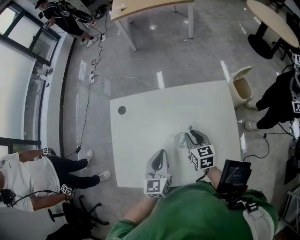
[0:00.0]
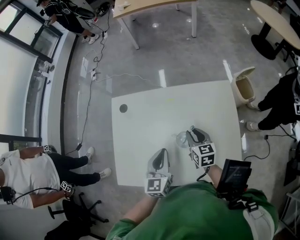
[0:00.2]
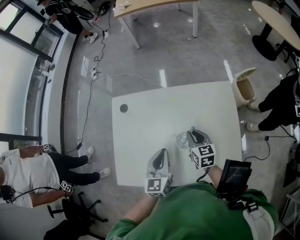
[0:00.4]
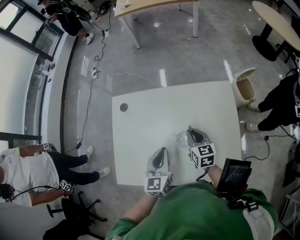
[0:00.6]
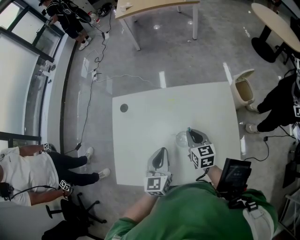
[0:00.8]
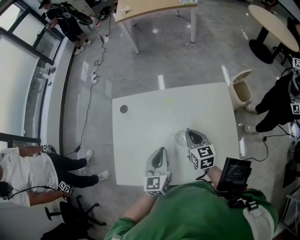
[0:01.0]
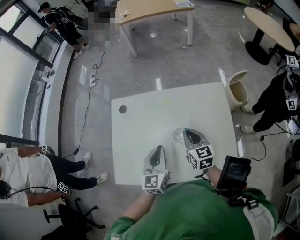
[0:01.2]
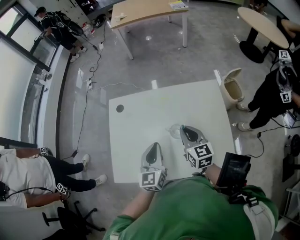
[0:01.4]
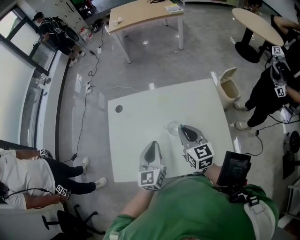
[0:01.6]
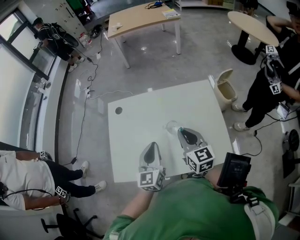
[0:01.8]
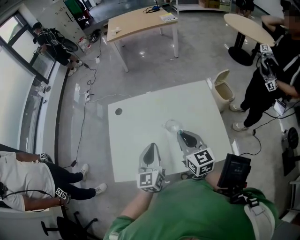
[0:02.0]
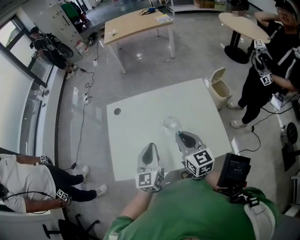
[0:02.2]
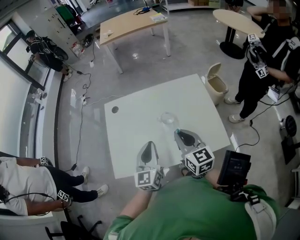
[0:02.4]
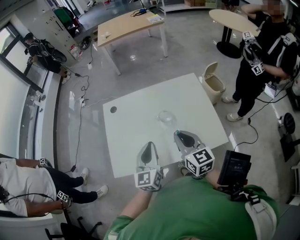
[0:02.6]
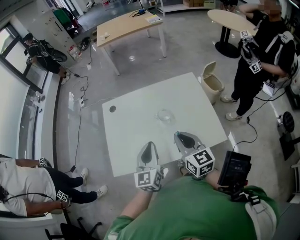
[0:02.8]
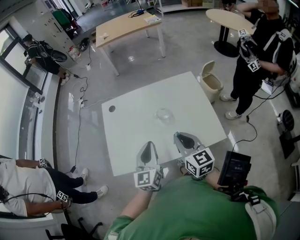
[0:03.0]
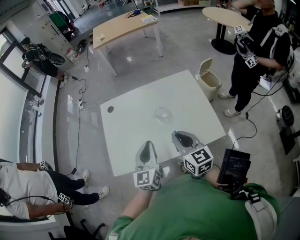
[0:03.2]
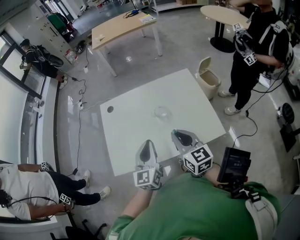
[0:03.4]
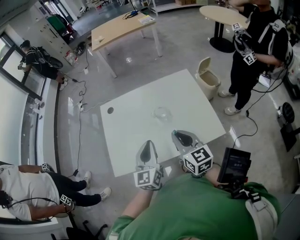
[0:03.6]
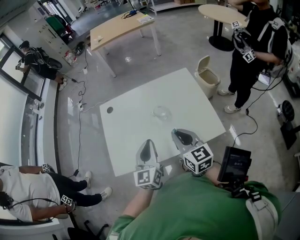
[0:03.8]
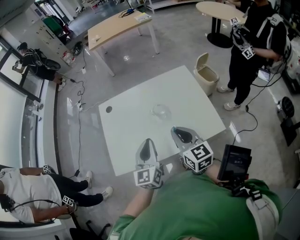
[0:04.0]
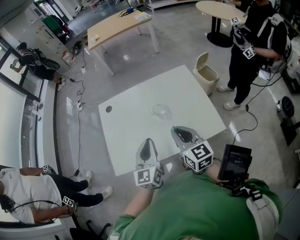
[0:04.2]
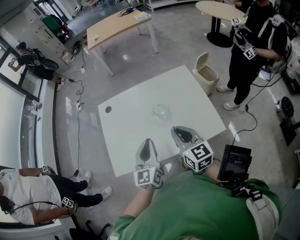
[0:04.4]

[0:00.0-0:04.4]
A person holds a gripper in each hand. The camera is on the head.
0:00.0 to 0:01.4: The right gripper moves upward, approximately 10 cm, and closes.
0:01.4 to 0:03.0: The grippers both shift backward and upward by roughly 20 cm.
0:03.0 to 0:04.4: Both grippers stay put.

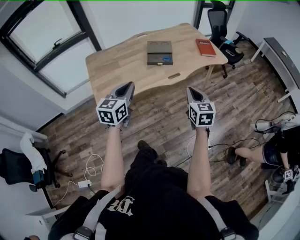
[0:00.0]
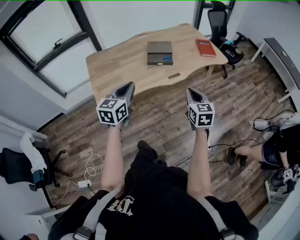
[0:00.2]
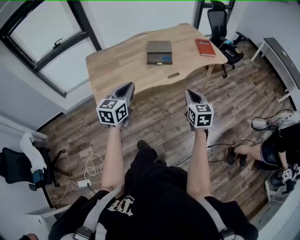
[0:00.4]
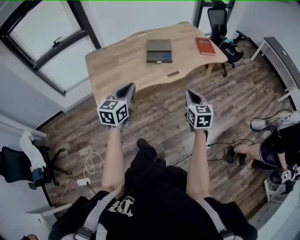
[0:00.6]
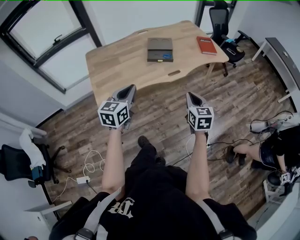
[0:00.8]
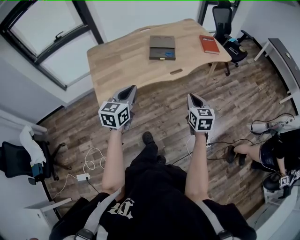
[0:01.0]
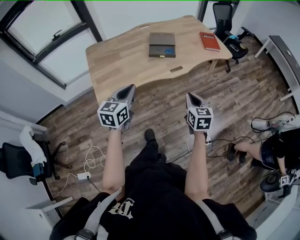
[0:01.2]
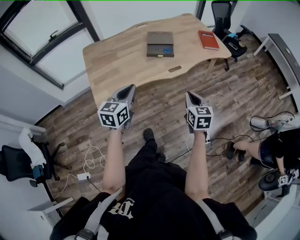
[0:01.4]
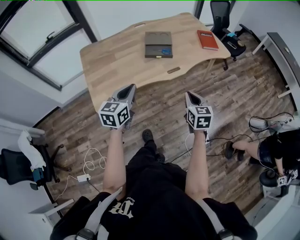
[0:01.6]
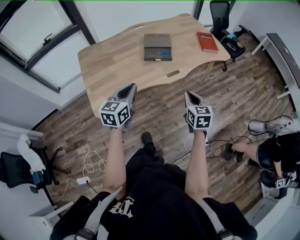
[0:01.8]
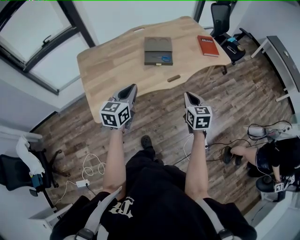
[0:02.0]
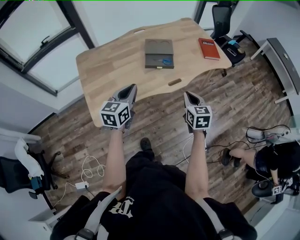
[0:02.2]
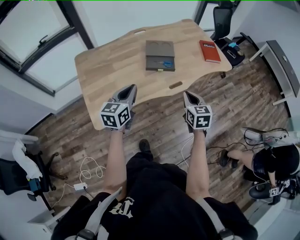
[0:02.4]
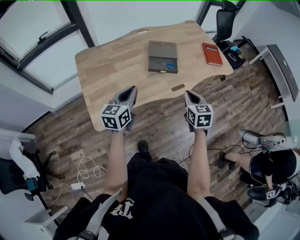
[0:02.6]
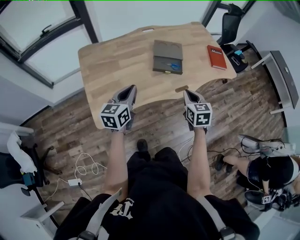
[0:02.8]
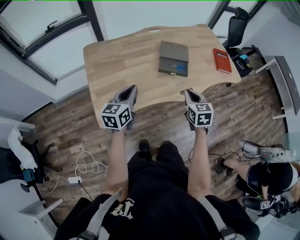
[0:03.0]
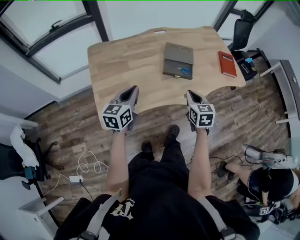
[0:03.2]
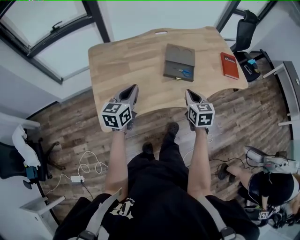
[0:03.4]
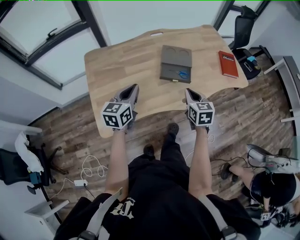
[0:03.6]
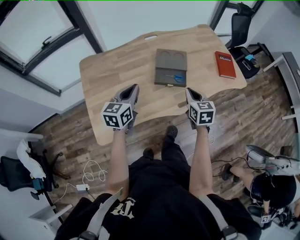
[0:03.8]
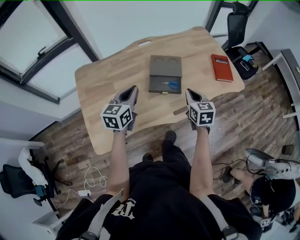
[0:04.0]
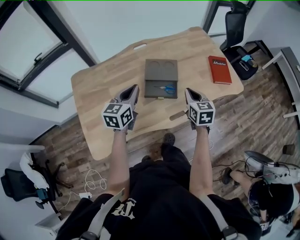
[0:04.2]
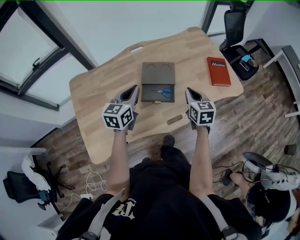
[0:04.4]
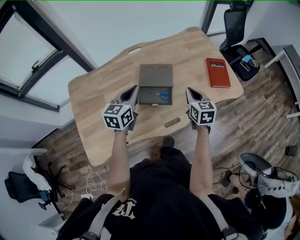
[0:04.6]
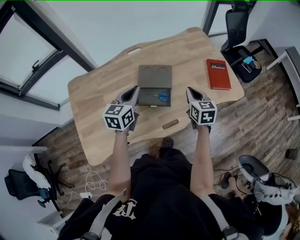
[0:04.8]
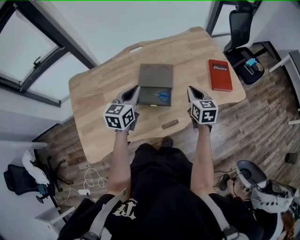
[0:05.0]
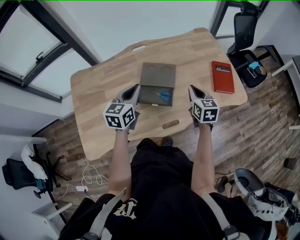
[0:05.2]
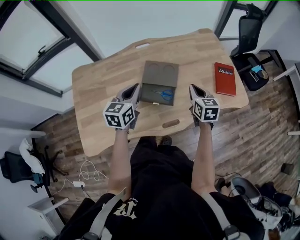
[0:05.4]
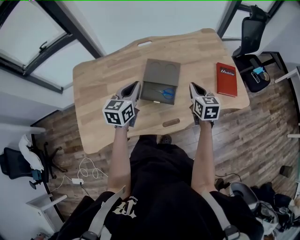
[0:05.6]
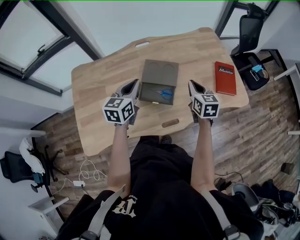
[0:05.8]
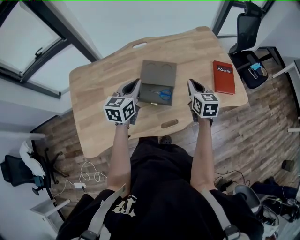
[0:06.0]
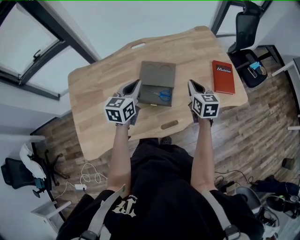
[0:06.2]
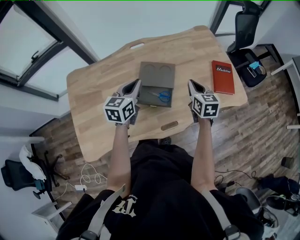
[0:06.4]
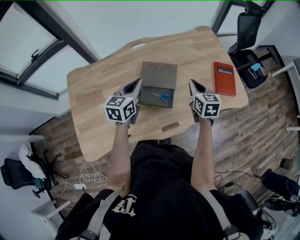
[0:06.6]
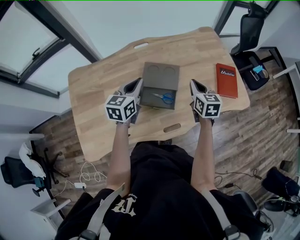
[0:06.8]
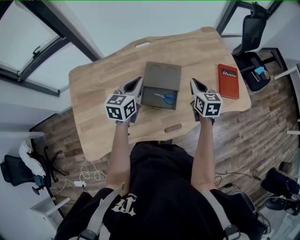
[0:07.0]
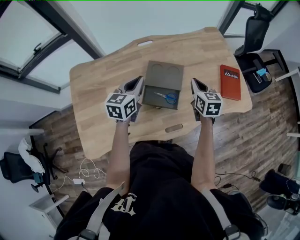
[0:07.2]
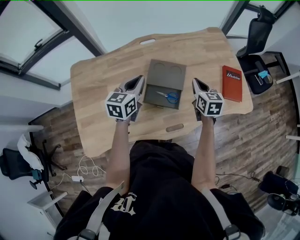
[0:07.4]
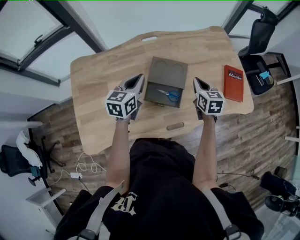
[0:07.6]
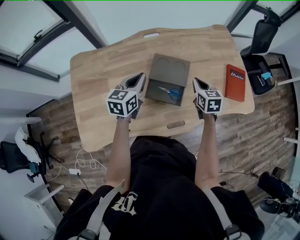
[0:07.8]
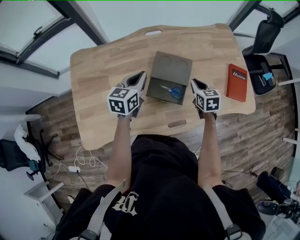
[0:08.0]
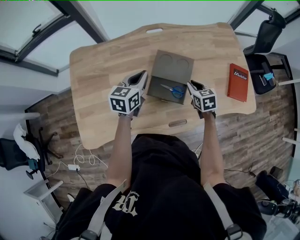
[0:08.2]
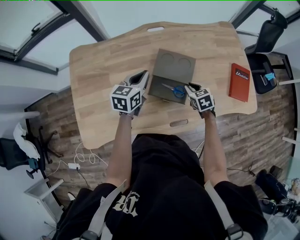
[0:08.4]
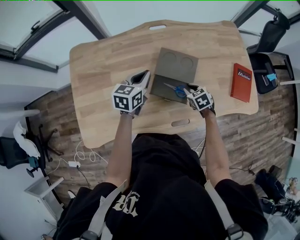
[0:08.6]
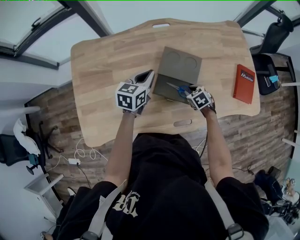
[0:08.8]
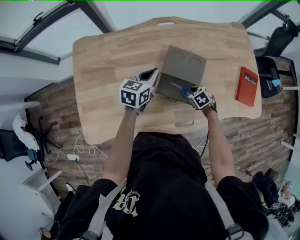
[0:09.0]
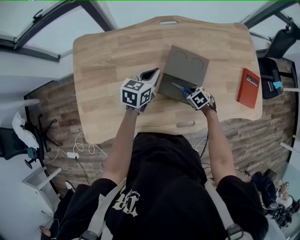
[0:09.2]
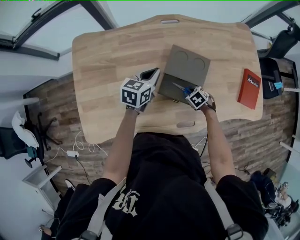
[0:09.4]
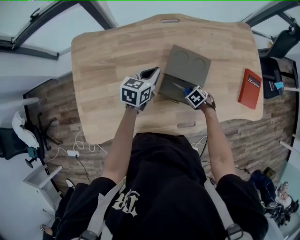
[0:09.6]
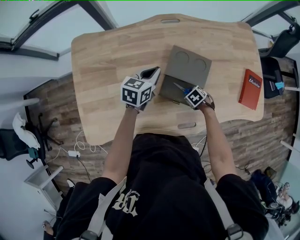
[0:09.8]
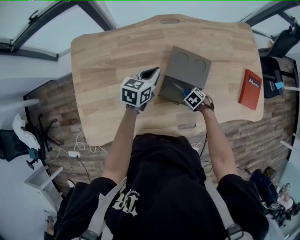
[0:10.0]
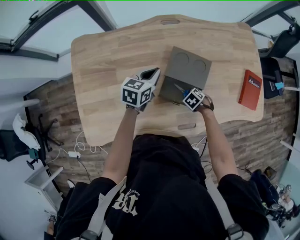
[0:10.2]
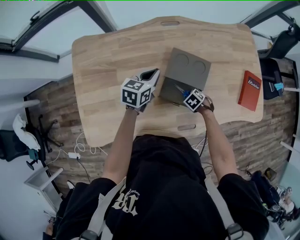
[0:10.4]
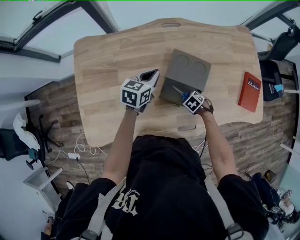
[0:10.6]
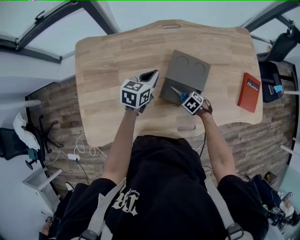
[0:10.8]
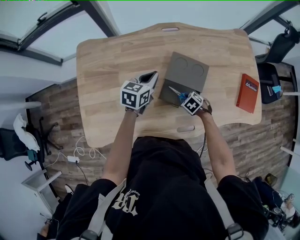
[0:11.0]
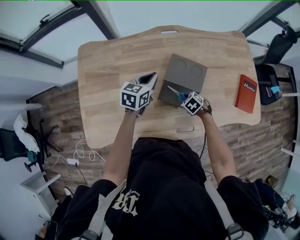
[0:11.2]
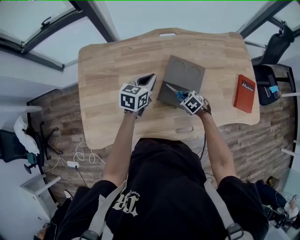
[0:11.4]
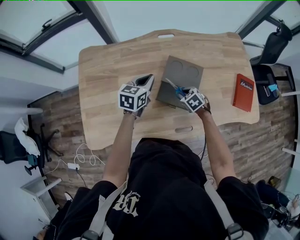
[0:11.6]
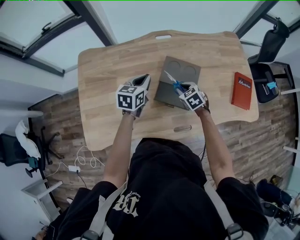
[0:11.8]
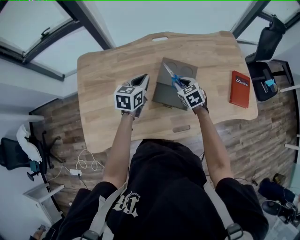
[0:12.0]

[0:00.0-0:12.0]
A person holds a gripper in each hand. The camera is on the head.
0:00.0 to 0:01.6: Both grippers travel together downward, approximately 5 cm.
0:01.6 to 0:03.0: Both grippers travel together forward and to the left, approximately 20 cm.
0:03.0 to 0:04.4: Both grippers move forward and to the right, roughly 30 cm.
0:04.4 to 0:06.0: The right gripper shifts approximately 10 cm forward; the left gripper heads forward, covering roughly 5 cm.
0:06.0 to 0:07.6: The left gripper moves to the left, approximately 5 cm, while the right gripper travels forward by some 5 cm.
0:07.6 to 0:09.0: The right gripper heads downward, covering roughly 20 cm, points its fingers about 40 degrees further downward, and opens up, while the left gripper moves downward, some 10 cm.
0:09.0 to 0:10.4: The right gripper heads downward, covering some 5 cm.
0:10.4 to 0:12.0: The right gripper moves upward, approximately 20 cm, and angles its fingers upward, by roughly 30 degrees, while the left gripper travels upward by approximately 5 cm.

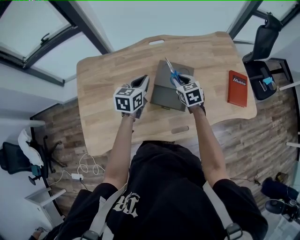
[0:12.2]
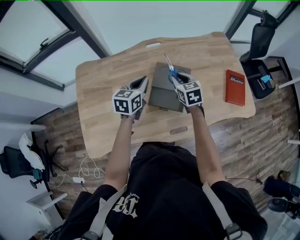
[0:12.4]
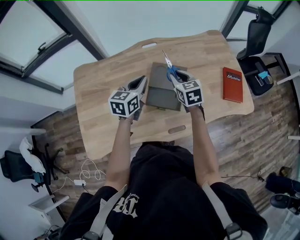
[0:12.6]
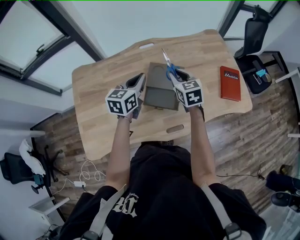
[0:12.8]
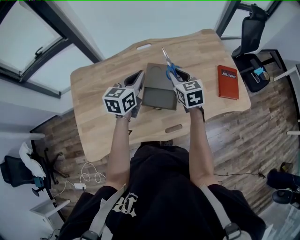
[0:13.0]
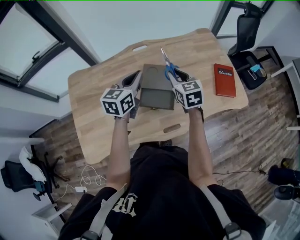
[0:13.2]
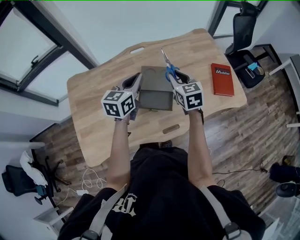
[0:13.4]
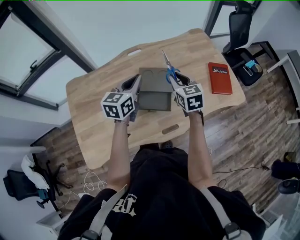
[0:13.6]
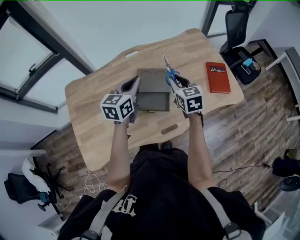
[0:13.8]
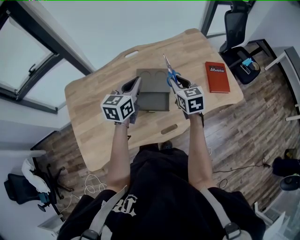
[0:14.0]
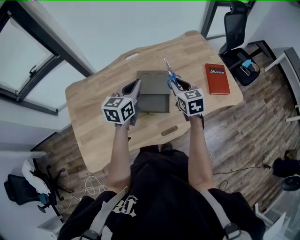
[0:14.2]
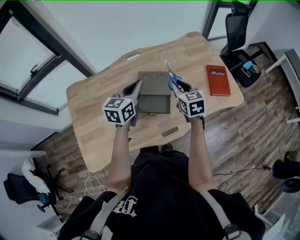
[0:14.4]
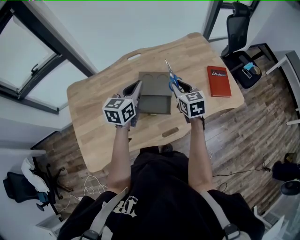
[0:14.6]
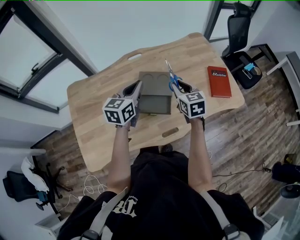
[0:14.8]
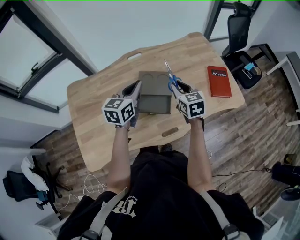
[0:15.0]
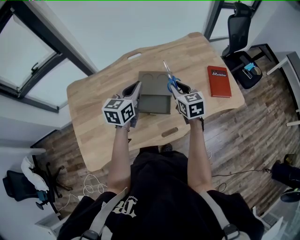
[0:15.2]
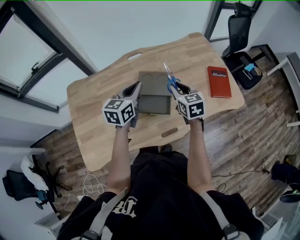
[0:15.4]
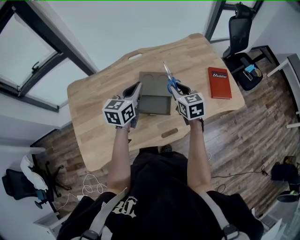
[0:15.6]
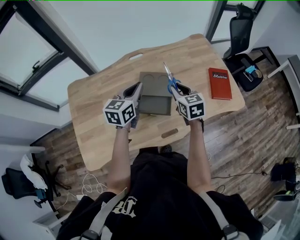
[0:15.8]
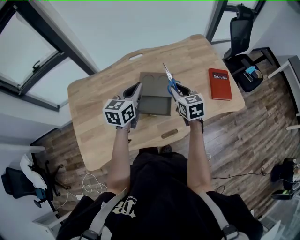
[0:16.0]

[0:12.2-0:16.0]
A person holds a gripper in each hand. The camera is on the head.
0:12.2 to 0:13.4: Both grippers travel together upward and to the right, approximately 15 cm.
0:13.4 to 0:16.0: The grippers move only a little.

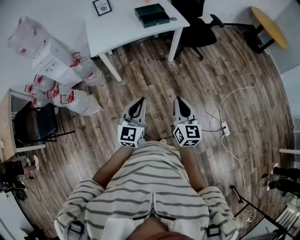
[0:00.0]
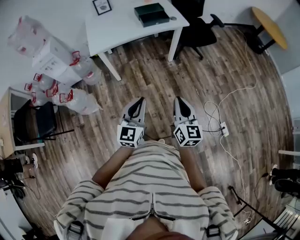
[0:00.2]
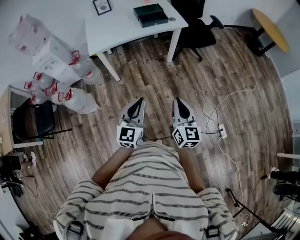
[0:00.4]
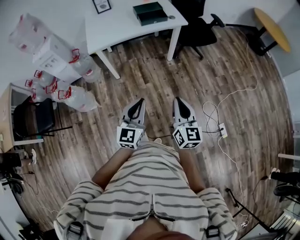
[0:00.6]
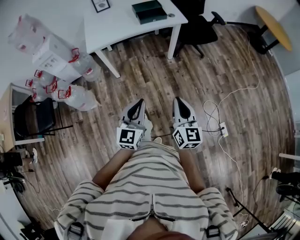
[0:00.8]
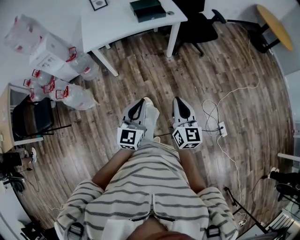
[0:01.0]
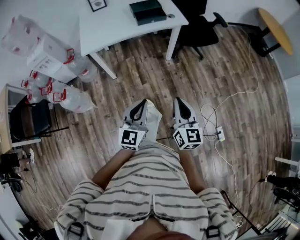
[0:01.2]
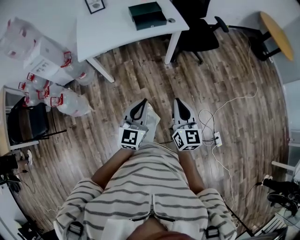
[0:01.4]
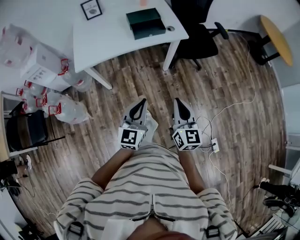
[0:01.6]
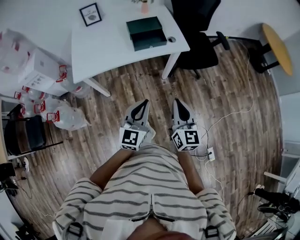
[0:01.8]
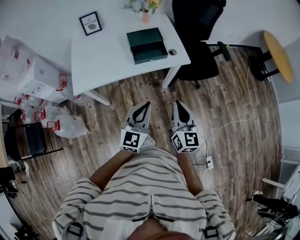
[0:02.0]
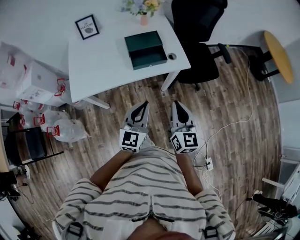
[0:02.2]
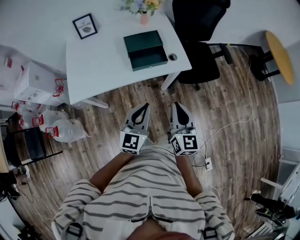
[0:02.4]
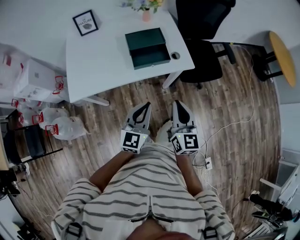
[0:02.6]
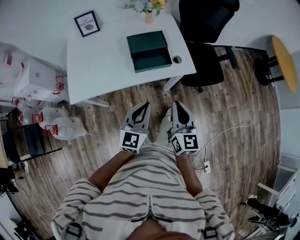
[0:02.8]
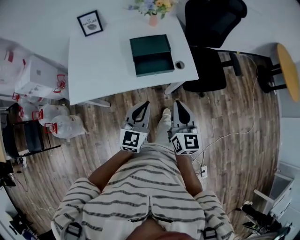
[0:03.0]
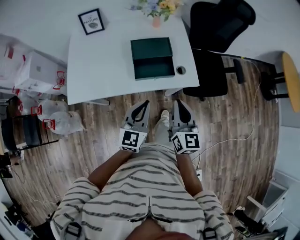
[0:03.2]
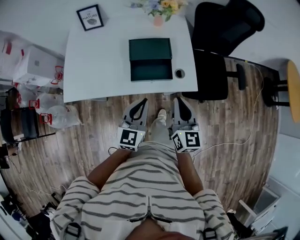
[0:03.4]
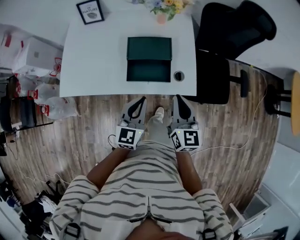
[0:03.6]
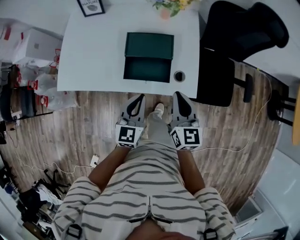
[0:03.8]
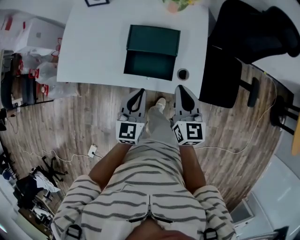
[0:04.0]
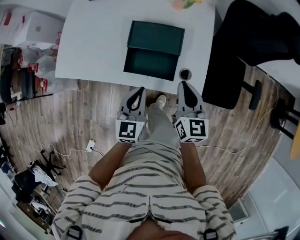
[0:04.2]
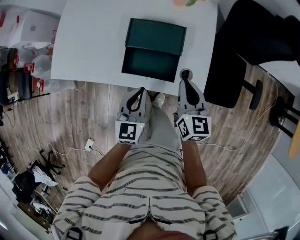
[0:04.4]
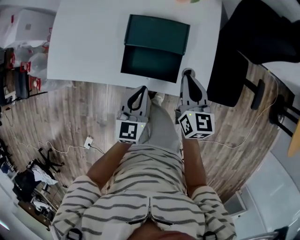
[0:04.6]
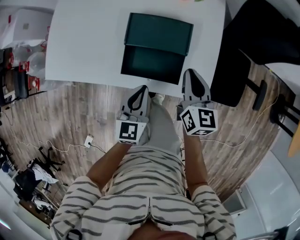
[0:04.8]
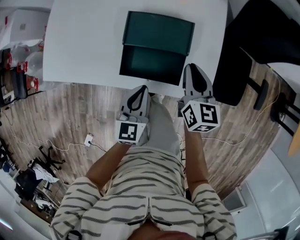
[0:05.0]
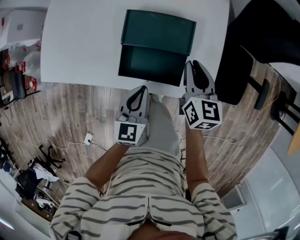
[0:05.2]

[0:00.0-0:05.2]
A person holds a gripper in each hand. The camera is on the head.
0:00.0 to 0:01.8: The two grippers go roughly 30 cm forward.
0:01.8 to 0:03.4: The two grippers go about 35 cm forward.
0:03.4 to 0:05.2: The right gripper is displaced forward and downward by approximately 30 cm, and swivels approximately 20 degrees; the left gripper shifts about 20 cm downward and forward, and swivels approximately 20 degrees.
